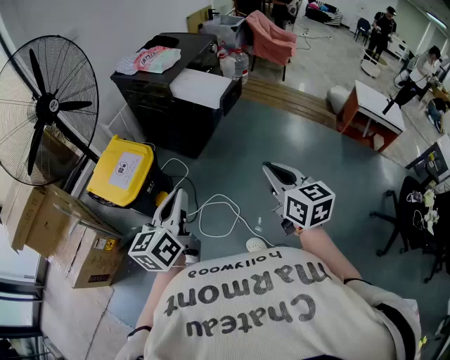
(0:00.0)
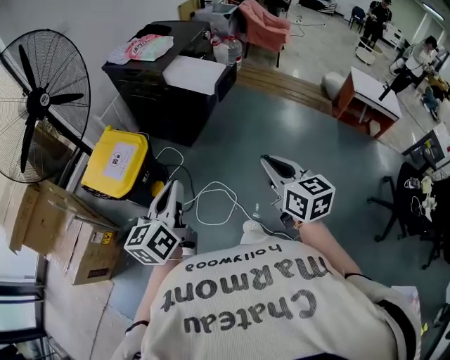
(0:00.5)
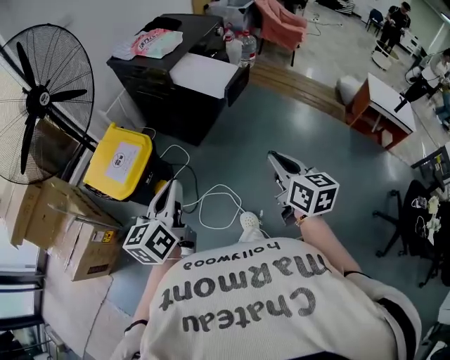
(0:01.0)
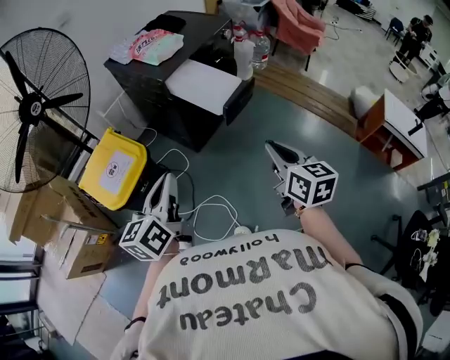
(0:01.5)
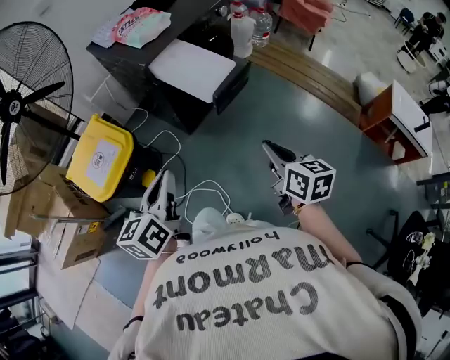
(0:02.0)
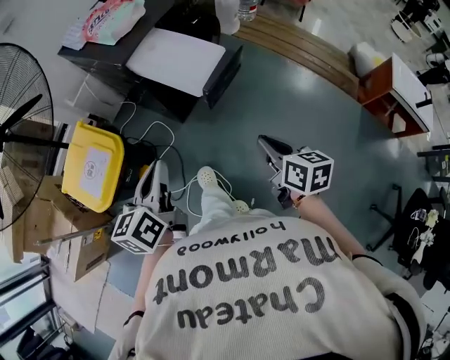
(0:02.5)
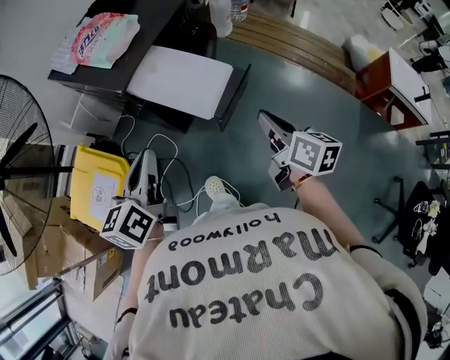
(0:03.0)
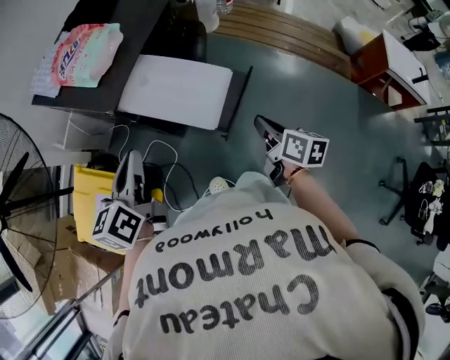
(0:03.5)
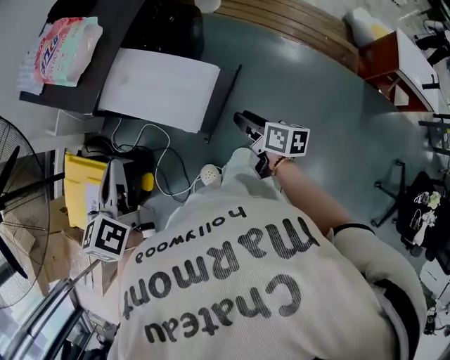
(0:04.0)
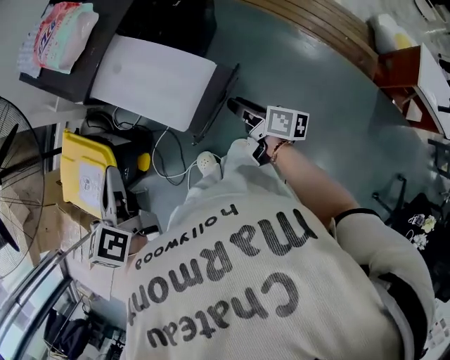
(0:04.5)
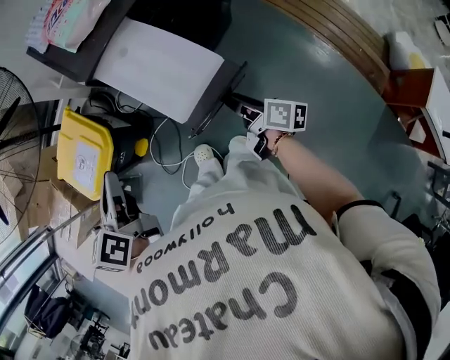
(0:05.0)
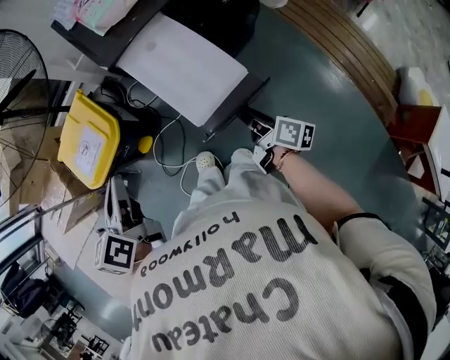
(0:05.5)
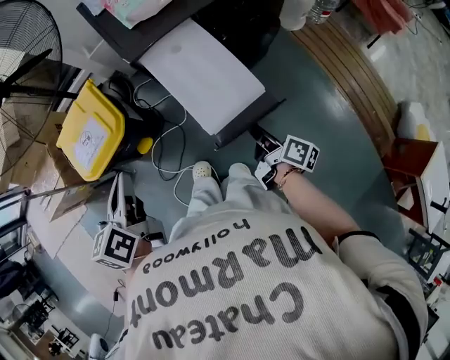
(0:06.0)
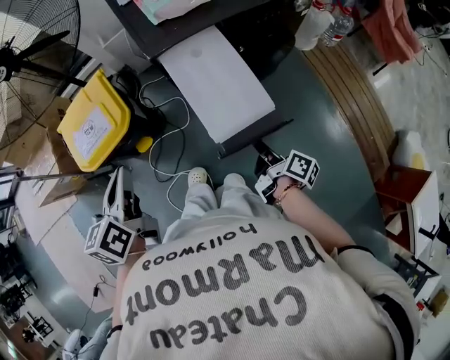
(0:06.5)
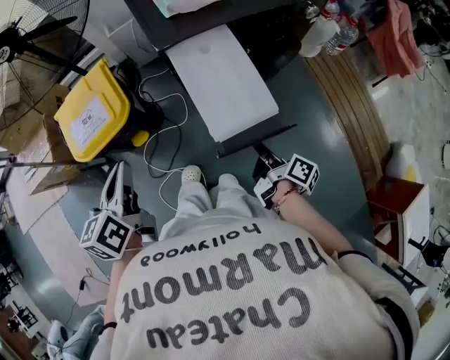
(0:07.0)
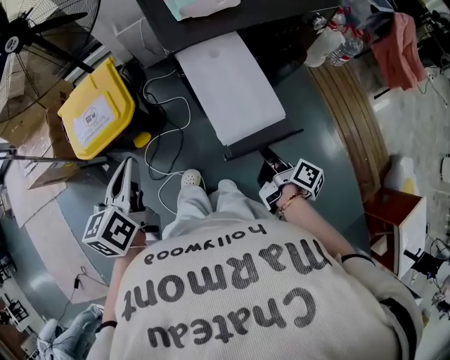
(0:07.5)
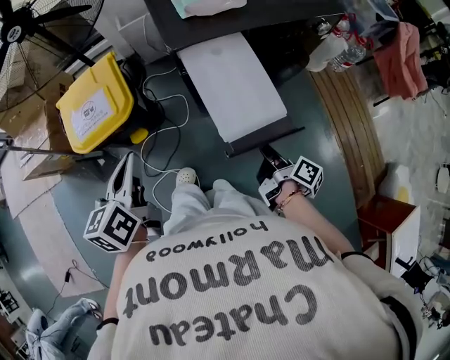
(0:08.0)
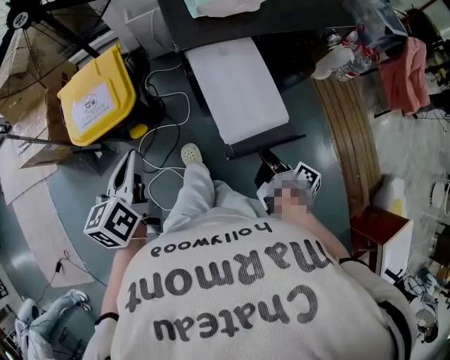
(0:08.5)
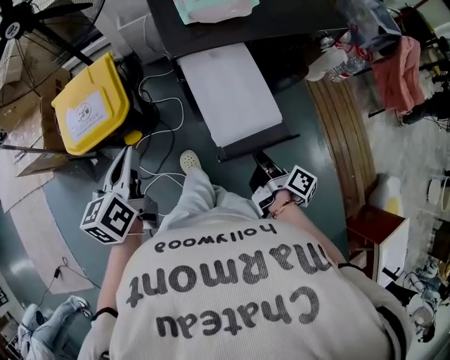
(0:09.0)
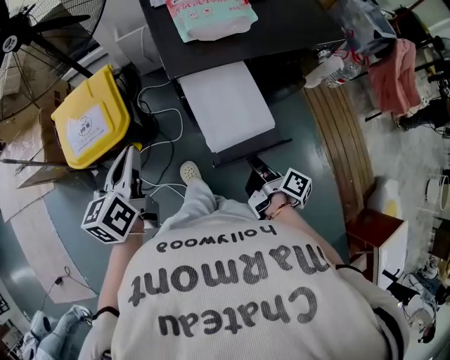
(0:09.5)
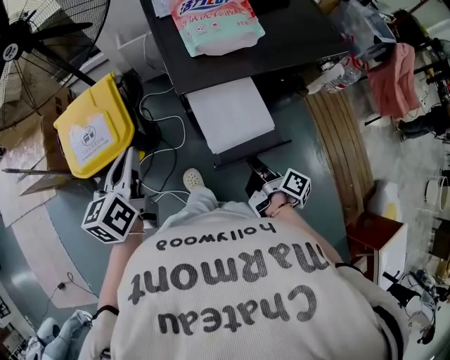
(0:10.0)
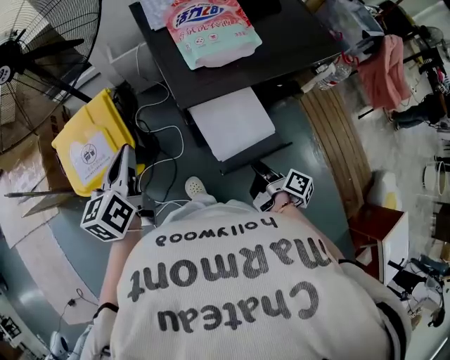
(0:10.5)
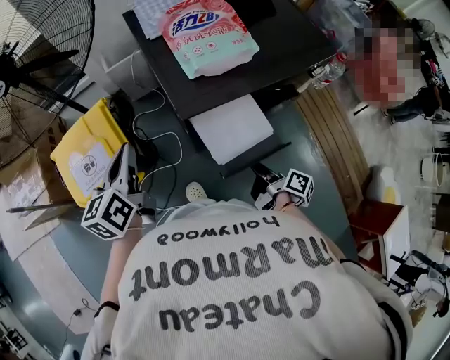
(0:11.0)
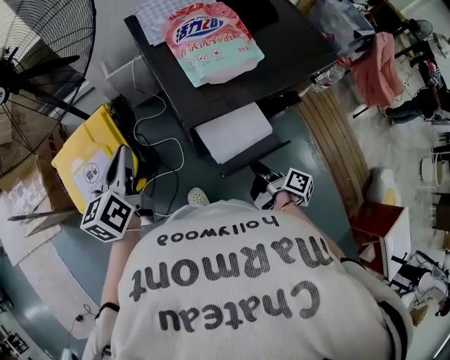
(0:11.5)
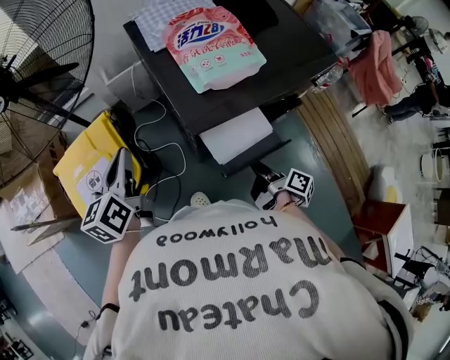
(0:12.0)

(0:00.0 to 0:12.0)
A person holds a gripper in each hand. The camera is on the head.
0:00.0 - 0:02.0: The left gripper moves approximately 25 cm.
0:02.0 - 0:04.0: The left gripper ends up about 30 cm from where it was.
0:04.0 - 0:06.0: The left gripper shifts by some 10 cm, and turns by approximately 30 degrees.
0:08.0 - 0:10.0: The left gripper shifts by roughly 15 cm.
0:10.0 - 0:12.0: The left gripper ends up roughly 15 cm from where it was.

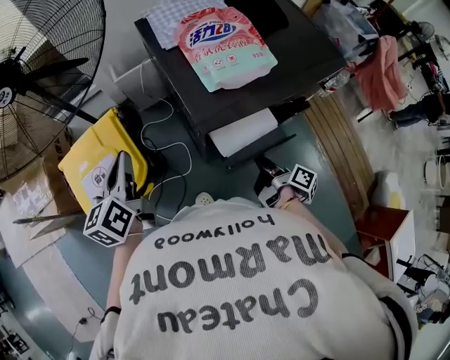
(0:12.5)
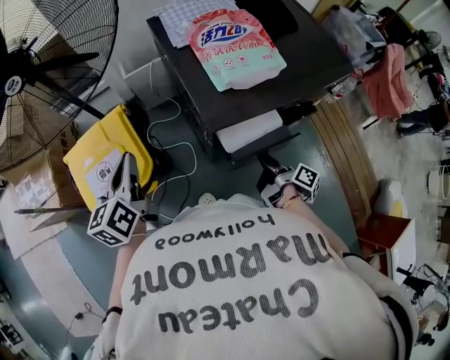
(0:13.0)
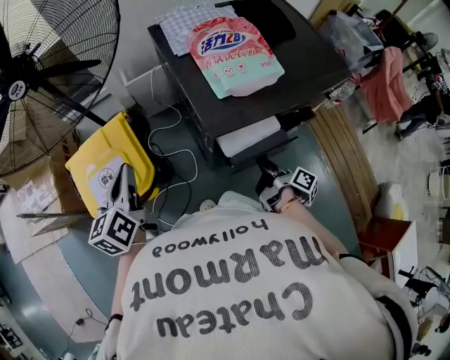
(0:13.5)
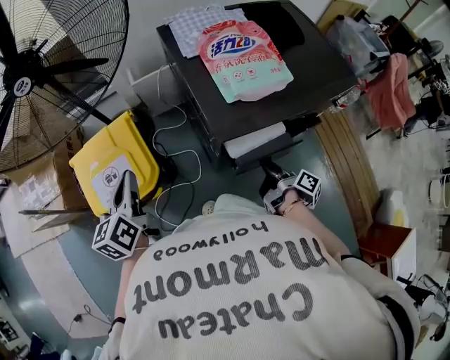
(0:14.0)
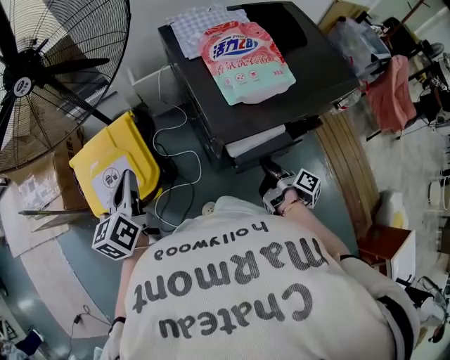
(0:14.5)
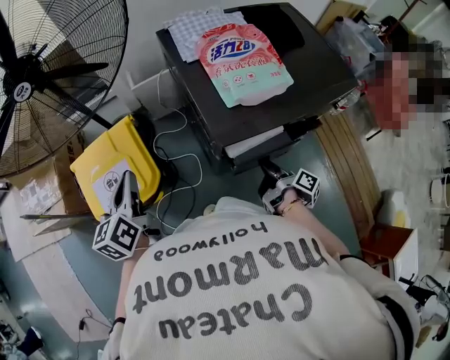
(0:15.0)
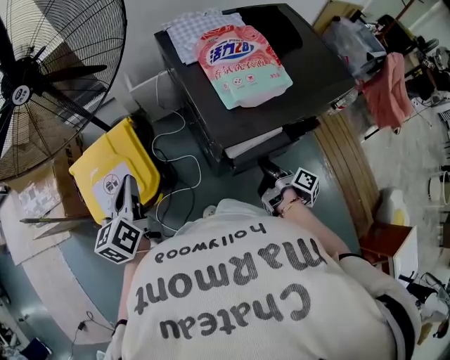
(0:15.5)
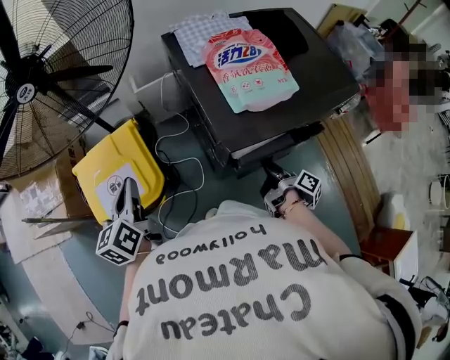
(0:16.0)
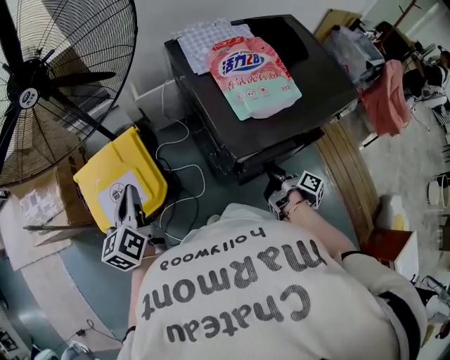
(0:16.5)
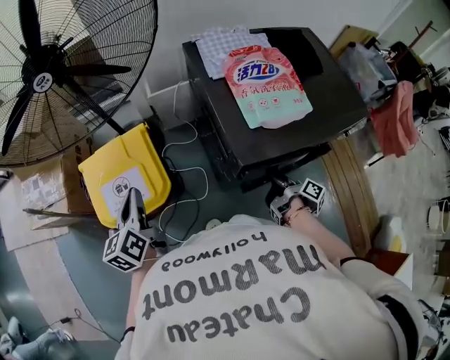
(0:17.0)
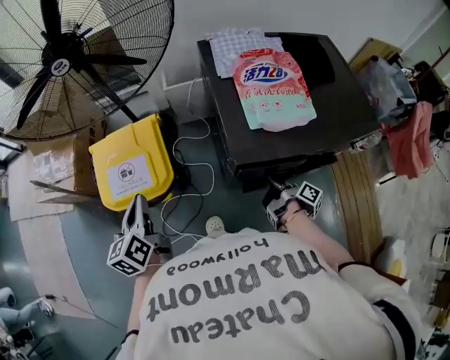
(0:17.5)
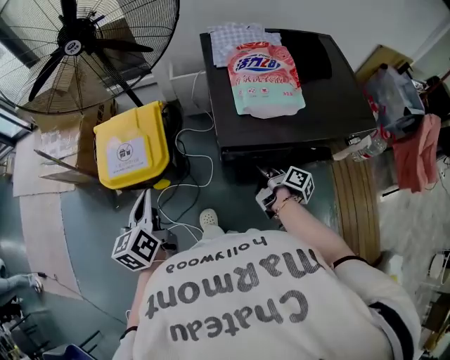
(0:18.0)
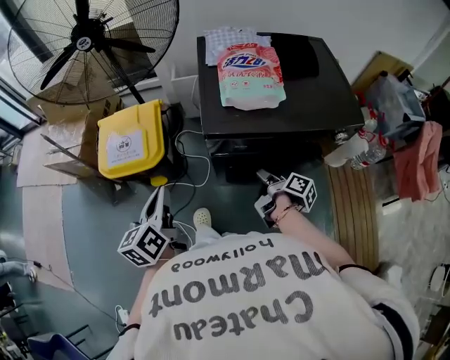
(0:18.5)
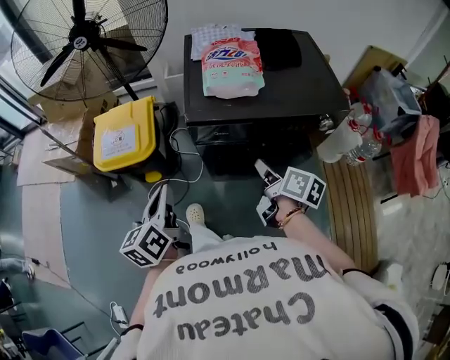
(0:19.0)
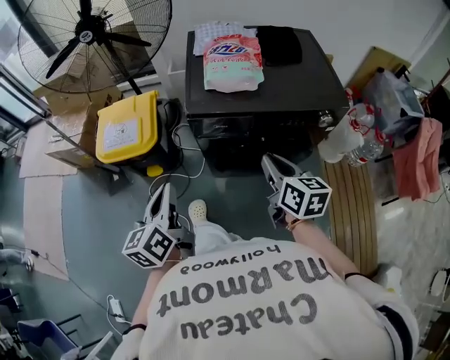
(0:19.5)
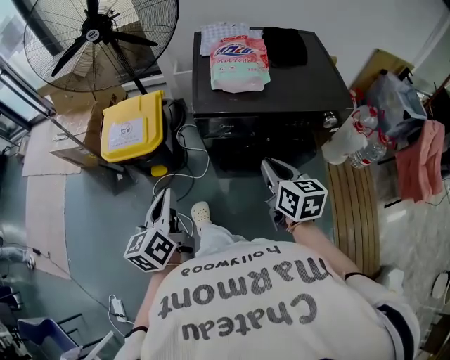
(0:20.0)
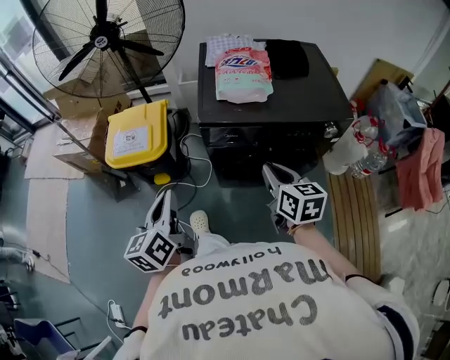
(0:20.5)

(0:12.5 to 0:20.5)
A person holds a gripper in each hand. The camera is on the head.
0:12.5 - 0:14.5: The left gripper changes place by approximately 5 cm.
0:16.5 - 0:18.5: The left gripper shifts by approximately 25 cm.
0:18.5 - 0:20.5: The left gripper changes place by about 10 cm.

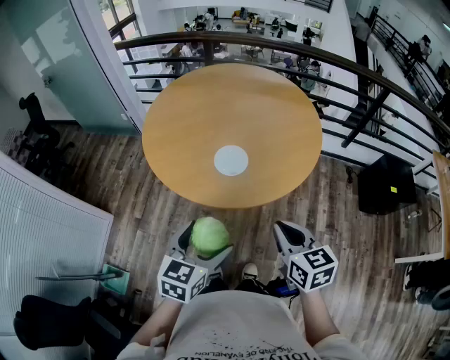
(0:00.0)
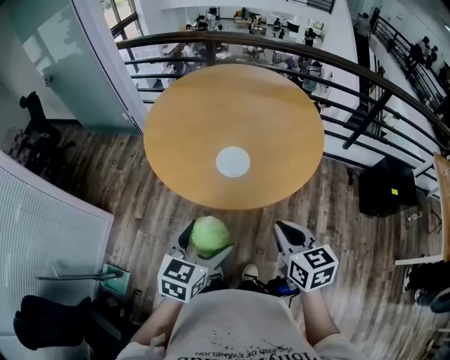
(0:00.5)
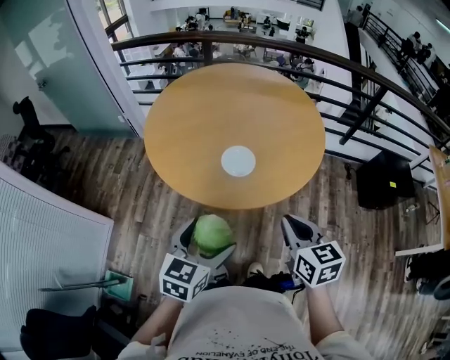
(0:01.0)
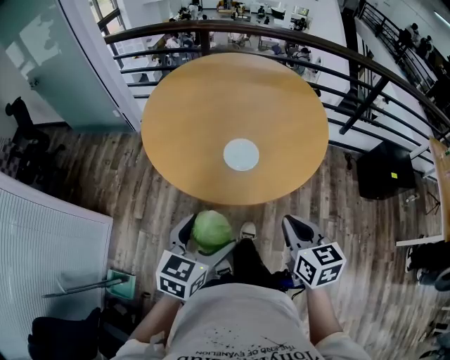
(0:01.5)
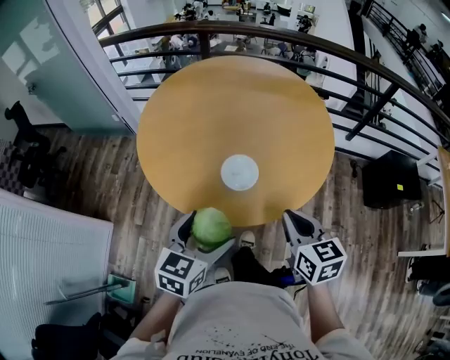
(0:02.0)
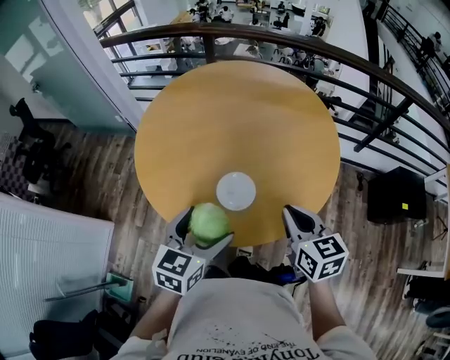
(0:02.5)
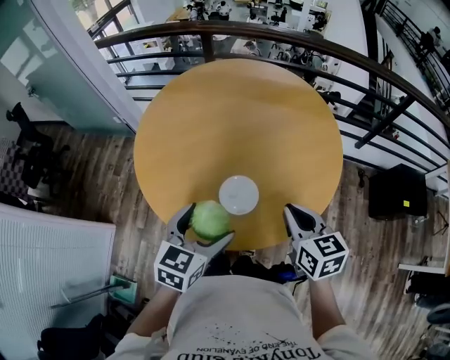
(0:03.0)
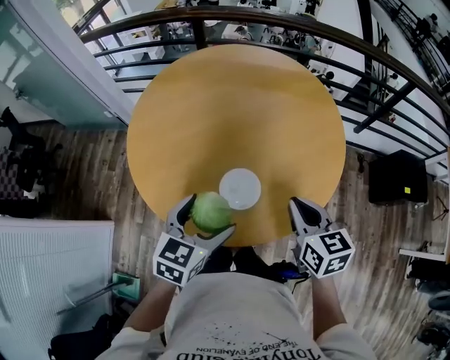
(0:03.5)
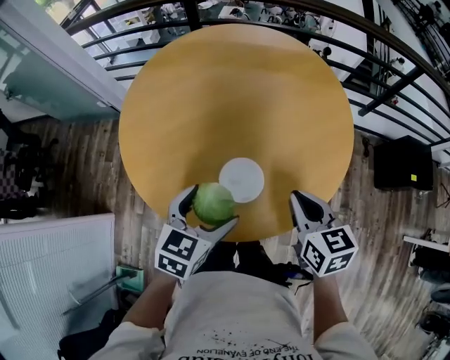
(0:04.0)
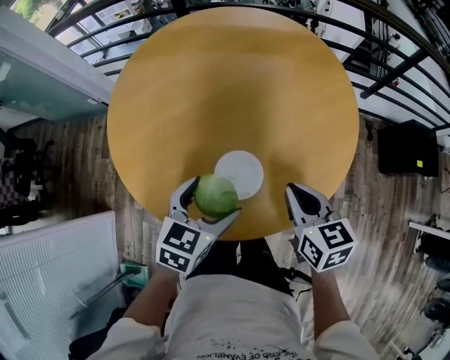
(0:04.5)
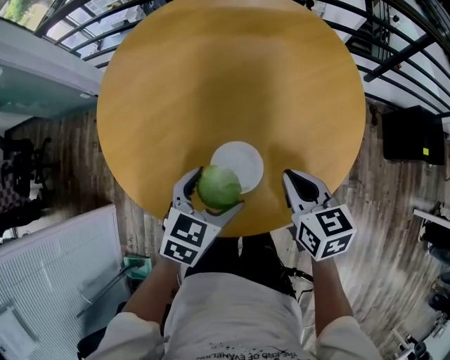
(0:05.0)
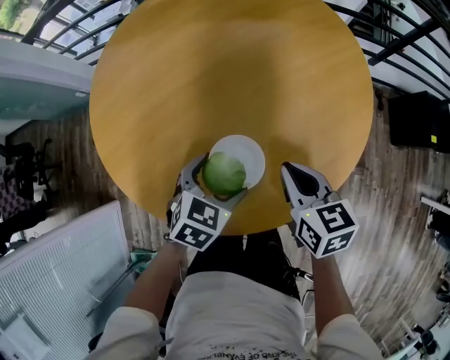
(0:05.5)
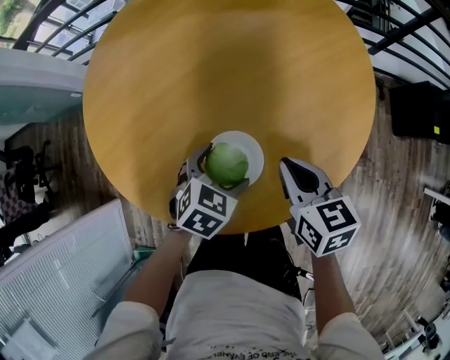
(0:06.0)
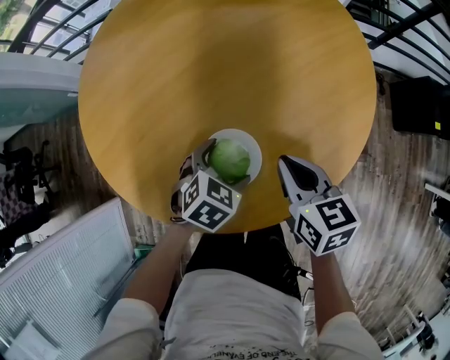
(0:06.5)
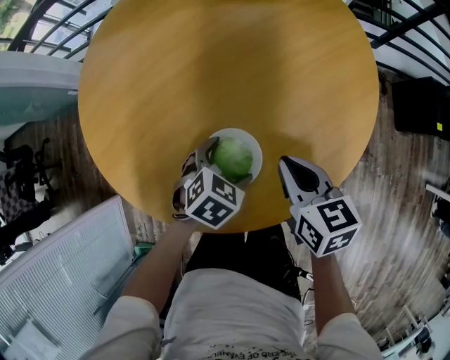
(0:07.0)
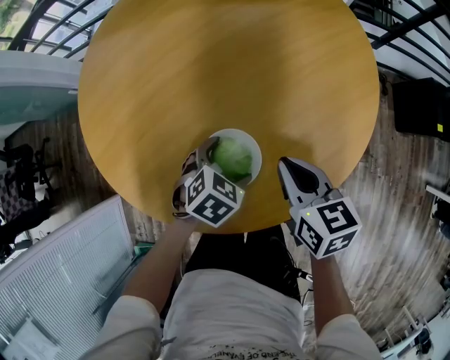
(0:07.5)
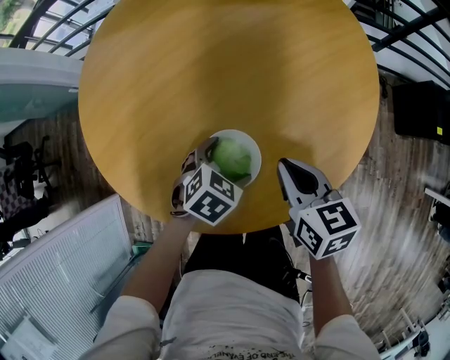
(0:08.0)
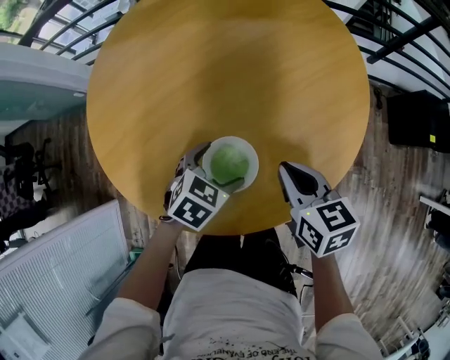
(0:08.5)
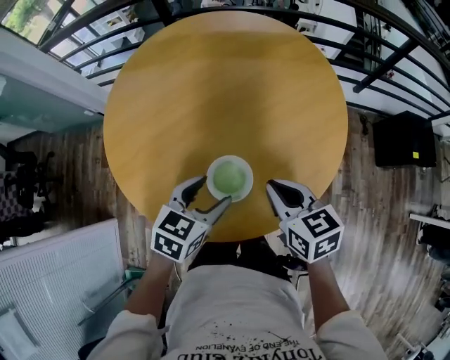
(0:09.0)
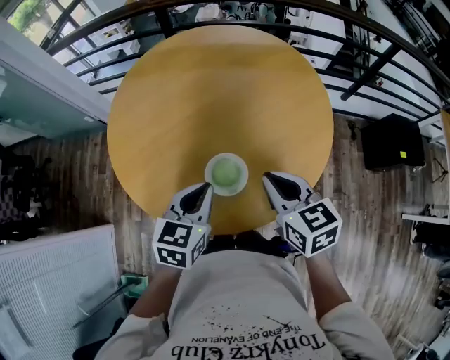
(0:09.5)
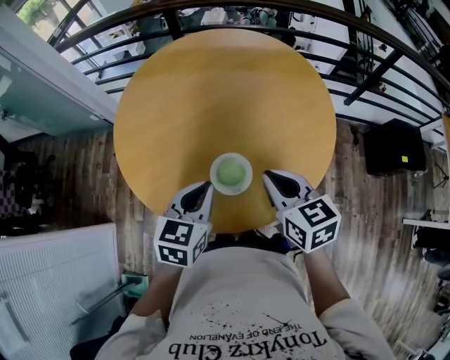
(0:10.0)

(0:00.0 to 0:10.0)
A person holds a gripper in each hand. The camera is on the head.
0:00.0 - 0:02.0: The left gripper goes some 15 cm forward and to the left, while the right gripper shifts about 10 cm forward.
0:02.0 - 0:04.0: Both grippers move forward, approximately 15 cm.
0:04.0 - 0:06.0: The two grippers go approximately 15 cm downward and forward. The left gripper turns by approximately 30 degrees.
0:06.0 - 0:08.0: The grippers make only small movements.
0:08.0 - 0:10.0: The right gripper moves upward and backward, roughly 20 cm. Meanwhile the left gripper shifts roughly 25 cm upward, tilts its fingers about 30 degrees upward, and closes.
